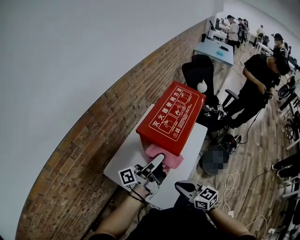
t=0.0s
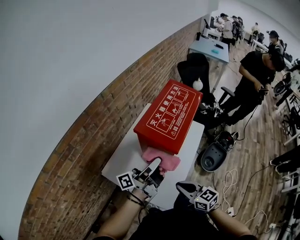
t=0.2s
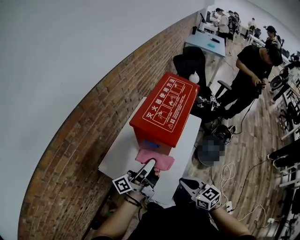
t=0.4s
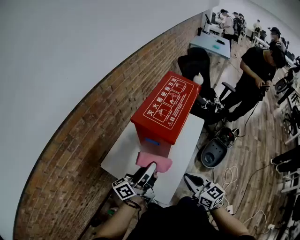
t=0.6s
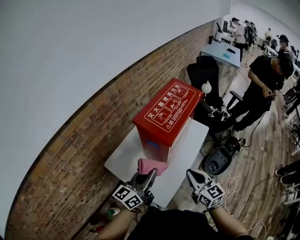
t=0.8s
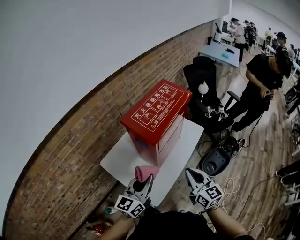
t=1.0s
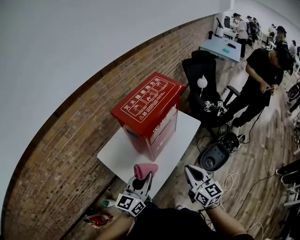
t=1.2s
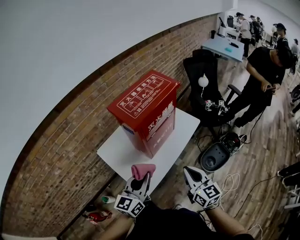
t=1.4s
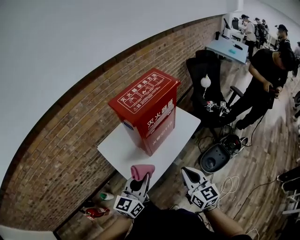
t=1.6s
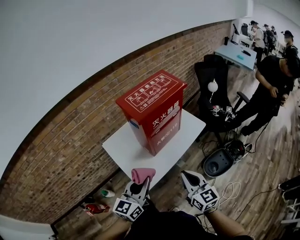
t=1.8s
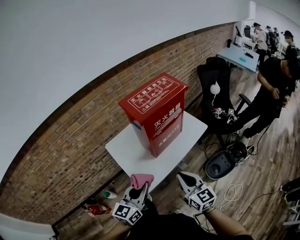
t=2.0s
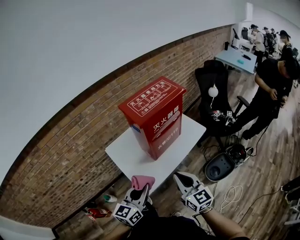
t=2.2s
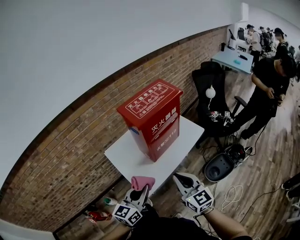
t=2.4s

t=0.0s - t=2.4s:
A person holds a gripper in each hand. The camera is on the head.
t=0.0s - t=1.2s: The right gripper shifts by approximately 20 cm.
t=1.2s - t=2.4s: The right gripper ends up some 10 cm from where it was.

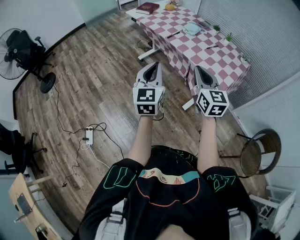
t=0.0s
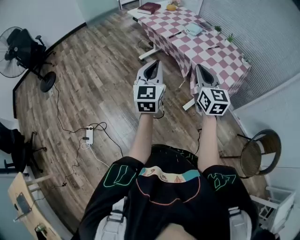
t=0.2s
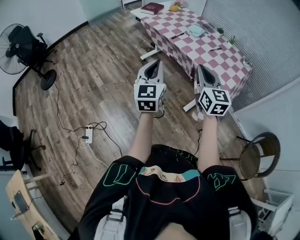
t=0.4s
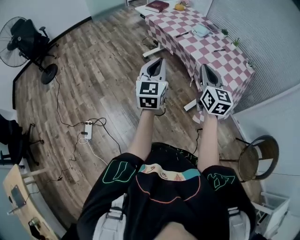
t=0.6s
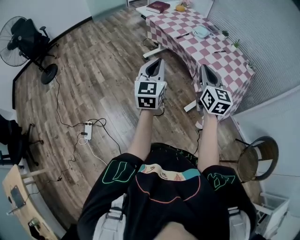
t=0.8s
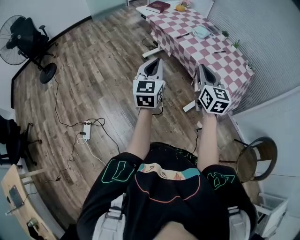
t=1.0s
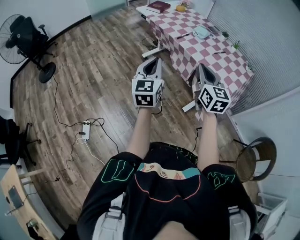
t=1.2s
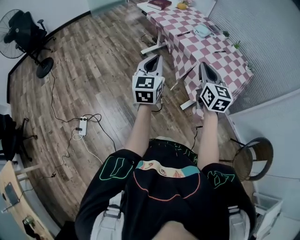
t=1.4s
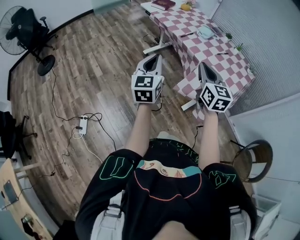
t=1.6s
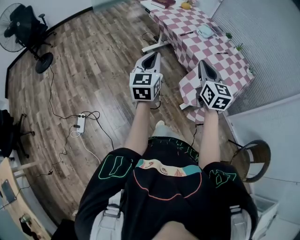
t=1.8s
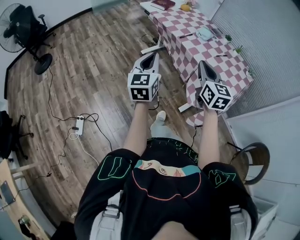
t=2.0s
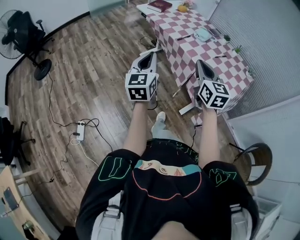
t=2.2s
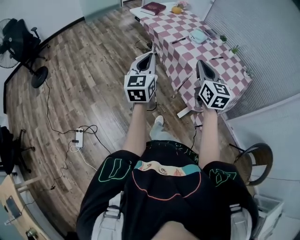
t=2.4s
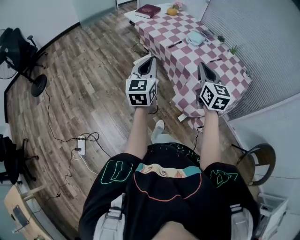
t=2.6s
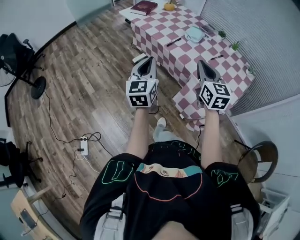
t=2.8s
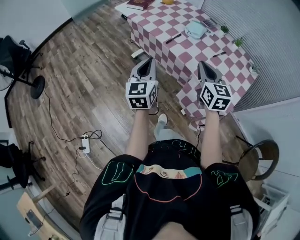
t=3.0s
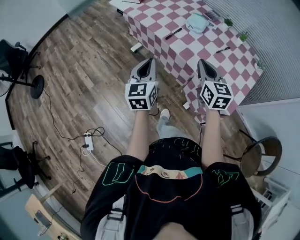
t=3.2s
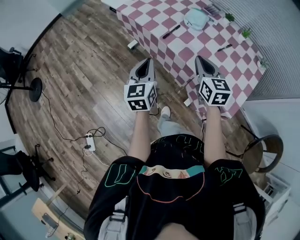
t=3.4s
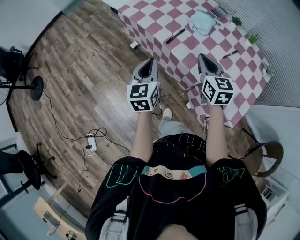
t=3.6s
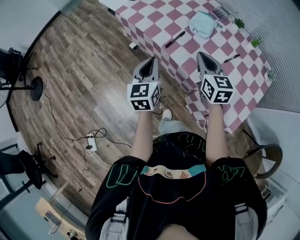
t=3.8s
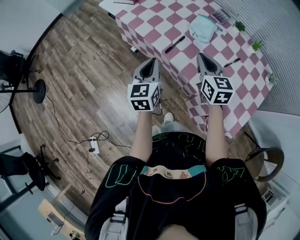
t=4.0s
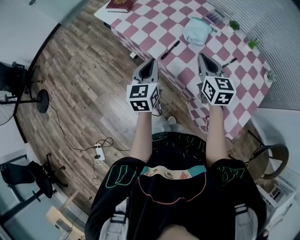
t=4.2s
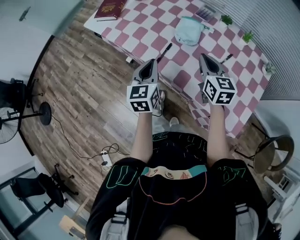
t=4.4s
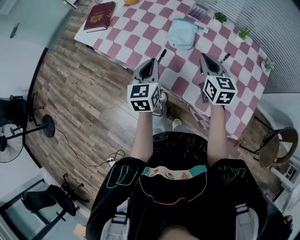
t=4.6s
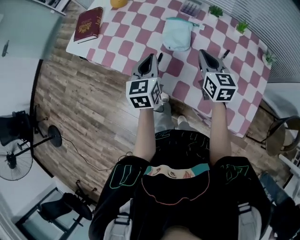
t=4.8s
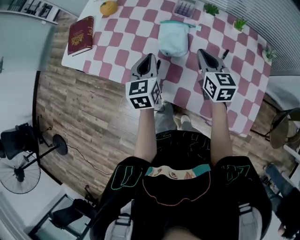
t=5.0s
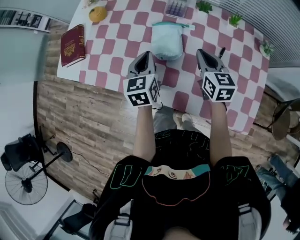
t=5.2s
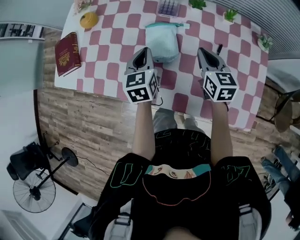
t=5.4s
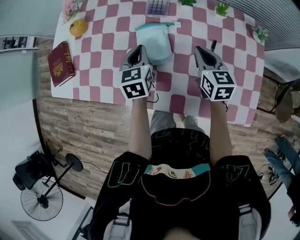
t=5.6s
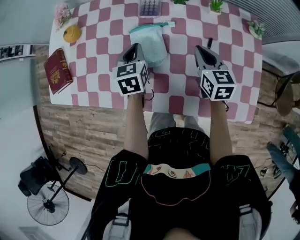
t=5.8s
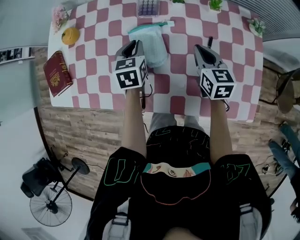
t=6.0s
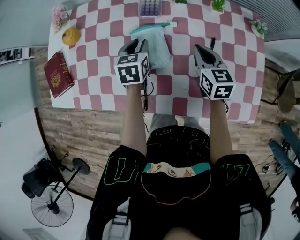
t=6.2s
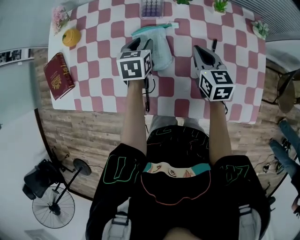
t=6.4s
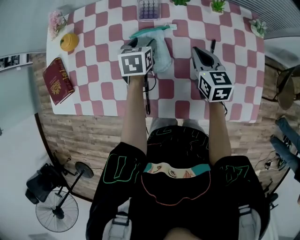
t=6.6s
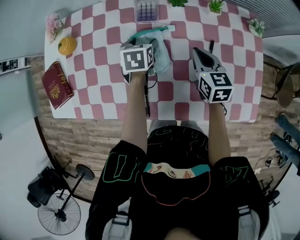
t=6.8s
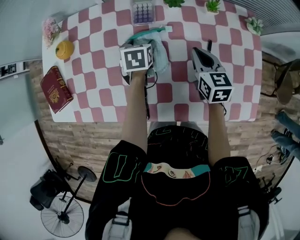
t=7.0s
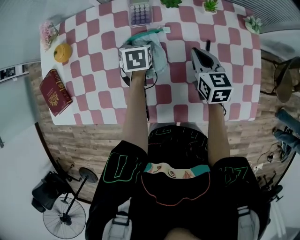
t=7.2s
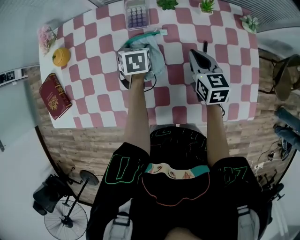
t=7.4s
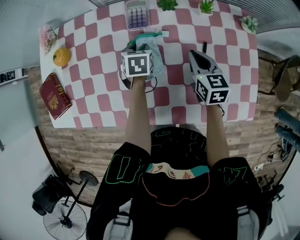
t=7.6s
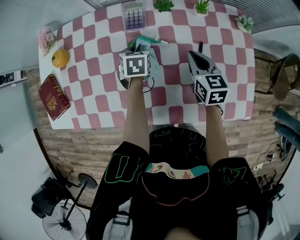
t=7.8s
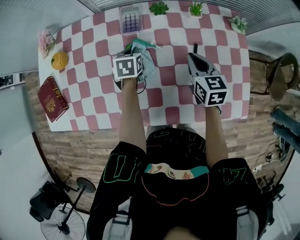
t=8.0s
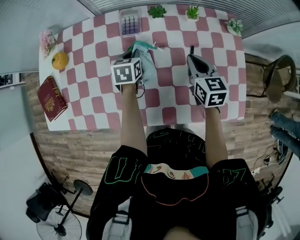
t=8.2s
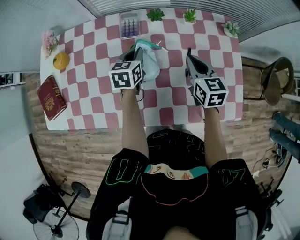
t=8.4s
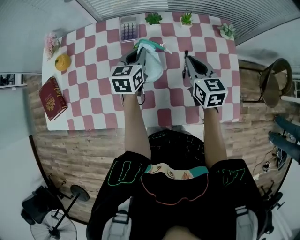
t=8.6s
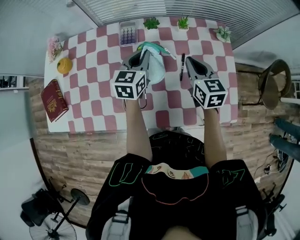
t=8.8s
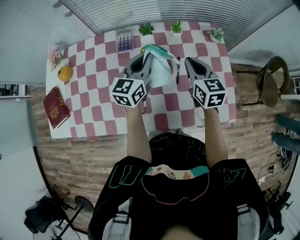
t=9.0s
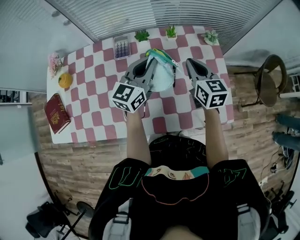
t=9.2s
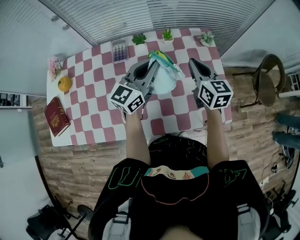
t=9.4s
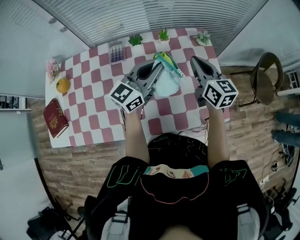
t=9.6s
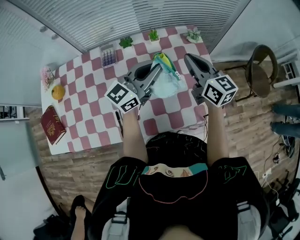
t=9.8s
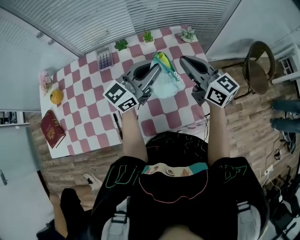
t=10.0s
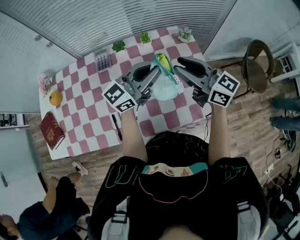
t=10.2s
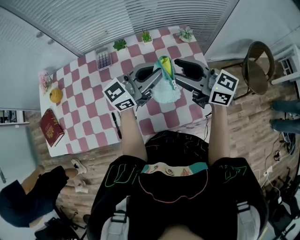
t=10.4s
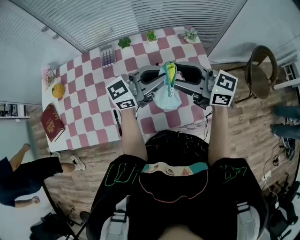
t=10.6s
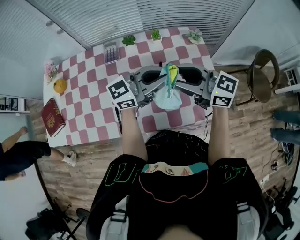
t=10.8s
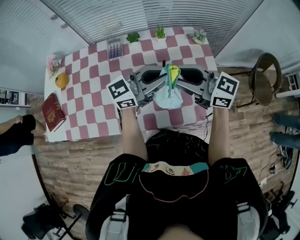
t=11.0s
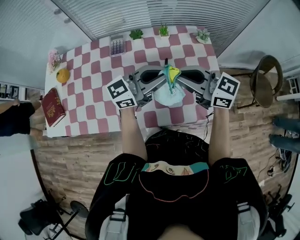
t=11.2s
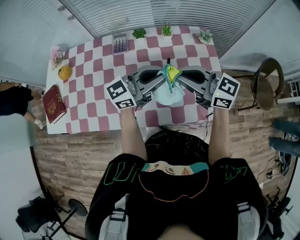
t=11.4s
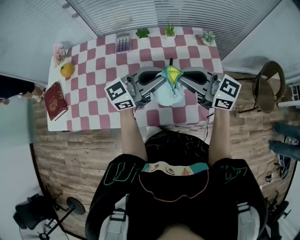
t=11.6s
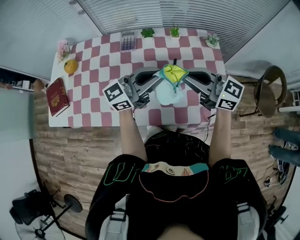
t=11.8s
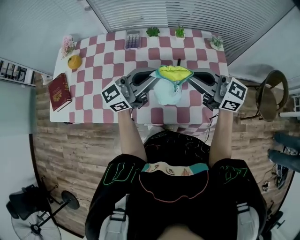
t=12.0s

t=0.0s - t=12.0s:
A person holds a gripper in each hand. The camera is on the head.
t=0.0s - t=1.6s: The grippers both shift to the left by approximately 5 cm.
t=1.6s - t=3.0s: The left gripper goes approximately 20 cm forward. The right gripper travels forward and to the right by about 20 cm.
t=3.0s - t=4.4s: Both grippers travel together forward, approximately 25 cm.
t=4.4s - t=6.0s: The left gripper ends up roughly 30 cm from where it was, and swivels some 40 degrees. Meanwhile the right gripper ends up roughly 20 cm from where it was, and swivels approximately 30 degrees.
t=6.0s - t=7.6s: The left gripper shifts roughly 10 cm downward and forward, and opens, then closes once more.
t=7.6s - t=9.0s: The right gripper travels upward and to the right by some 15 cm, while the left gripper goes approximately 25 cm upward and to the right, angles its fingers upward, by about 50 degrees, and closes.
t=9.0s - t=10.4s: The left gripper is displaced to the right and upward by approximately 20 cm, and rotates some 50 degrees, while the right gripper heads upward, backward and to the right, covering approximately 15 cm, turns by roughly 40 degrees, and opens its fingers.
t=10.4s - t=12.0s: The right gripper shifts by about 5 cm, and closes up; the left gripper shifts by roughly 15 cm.

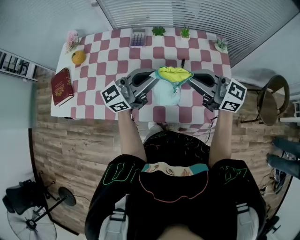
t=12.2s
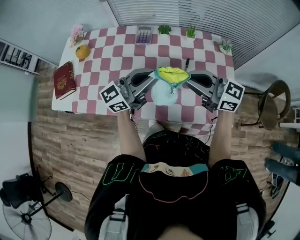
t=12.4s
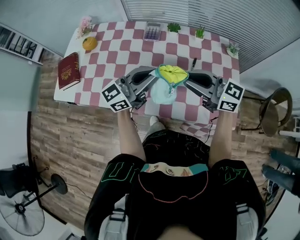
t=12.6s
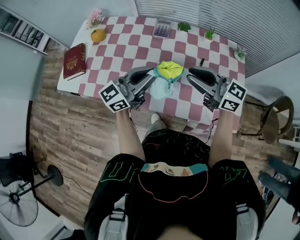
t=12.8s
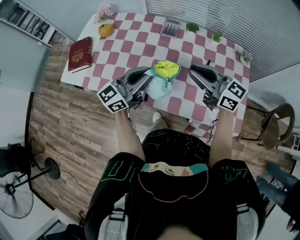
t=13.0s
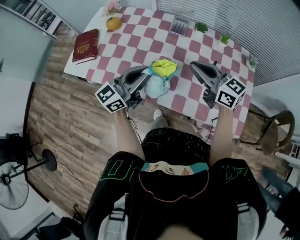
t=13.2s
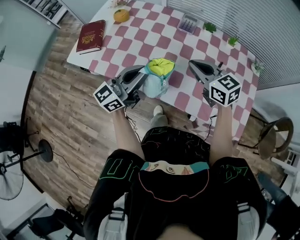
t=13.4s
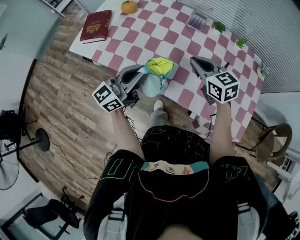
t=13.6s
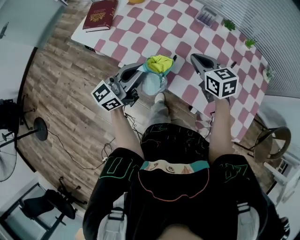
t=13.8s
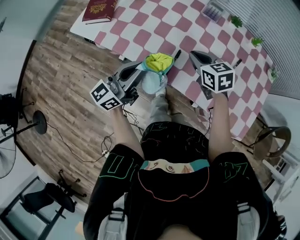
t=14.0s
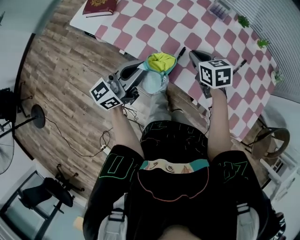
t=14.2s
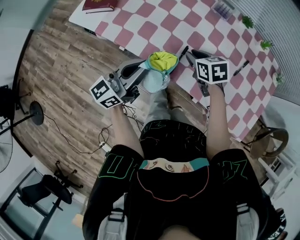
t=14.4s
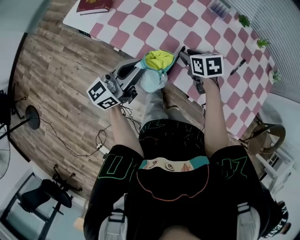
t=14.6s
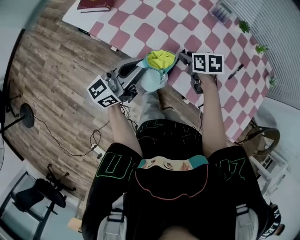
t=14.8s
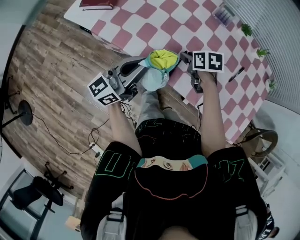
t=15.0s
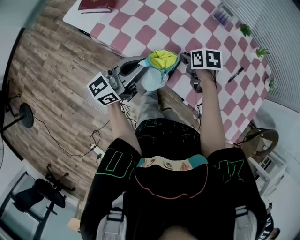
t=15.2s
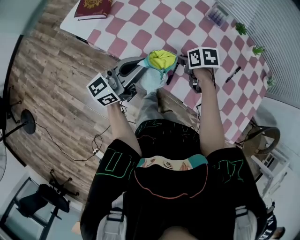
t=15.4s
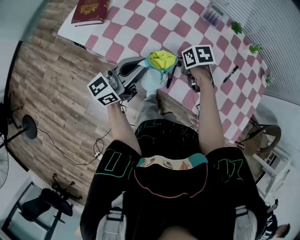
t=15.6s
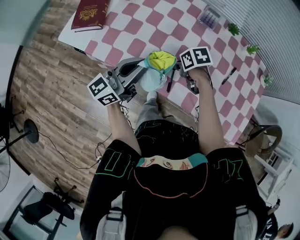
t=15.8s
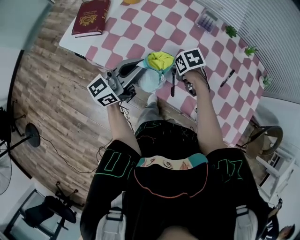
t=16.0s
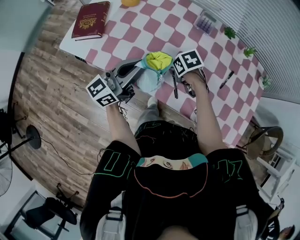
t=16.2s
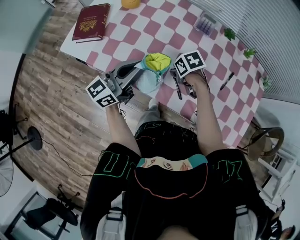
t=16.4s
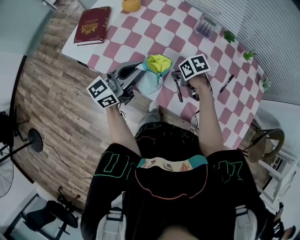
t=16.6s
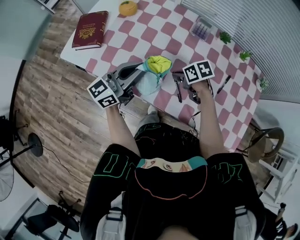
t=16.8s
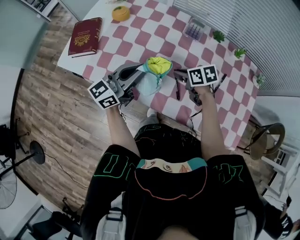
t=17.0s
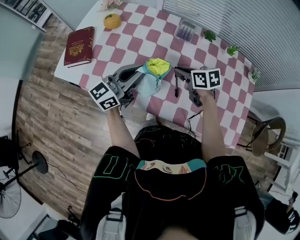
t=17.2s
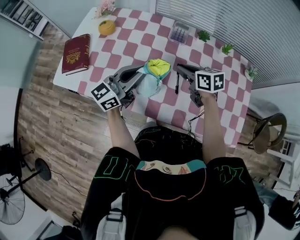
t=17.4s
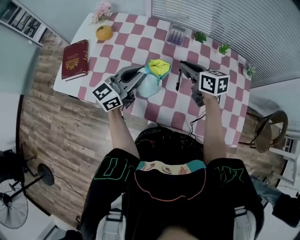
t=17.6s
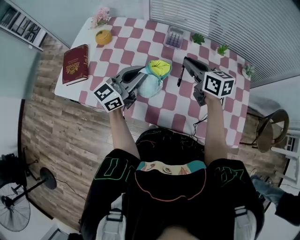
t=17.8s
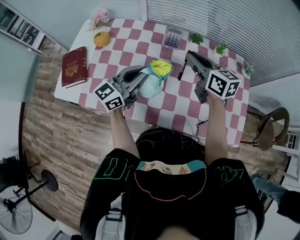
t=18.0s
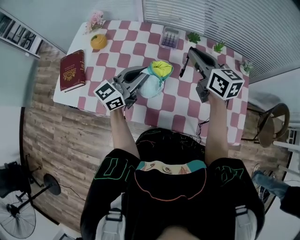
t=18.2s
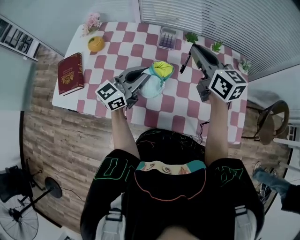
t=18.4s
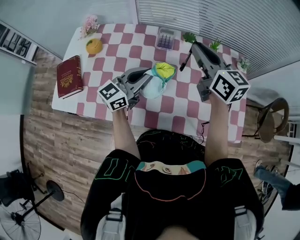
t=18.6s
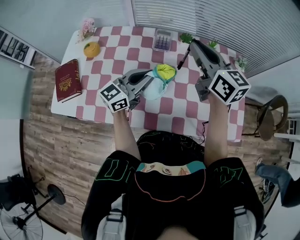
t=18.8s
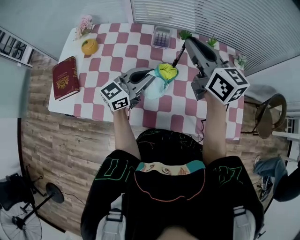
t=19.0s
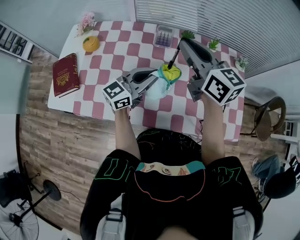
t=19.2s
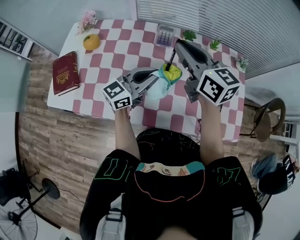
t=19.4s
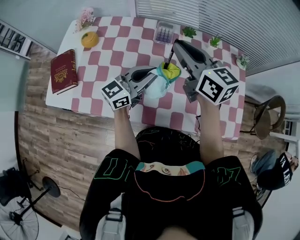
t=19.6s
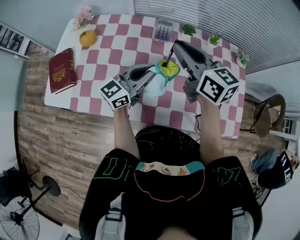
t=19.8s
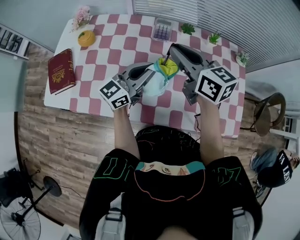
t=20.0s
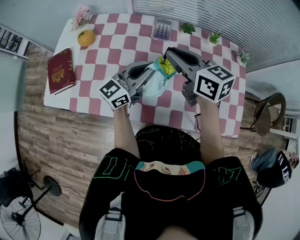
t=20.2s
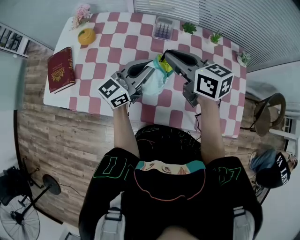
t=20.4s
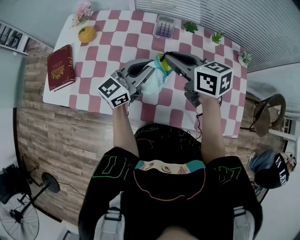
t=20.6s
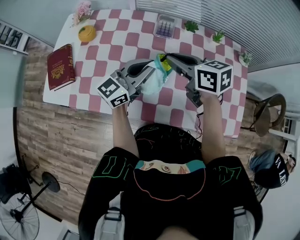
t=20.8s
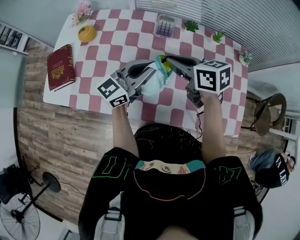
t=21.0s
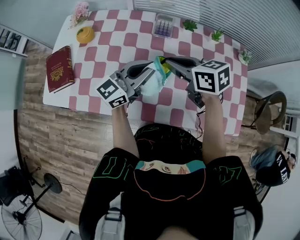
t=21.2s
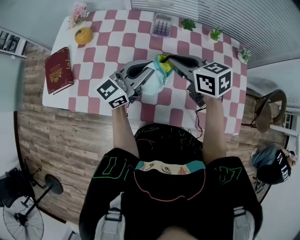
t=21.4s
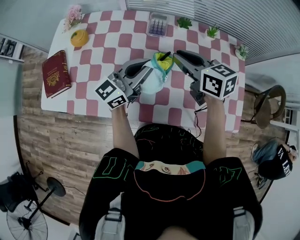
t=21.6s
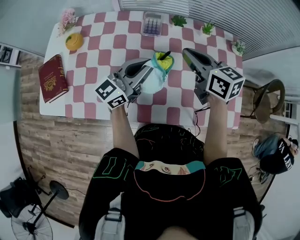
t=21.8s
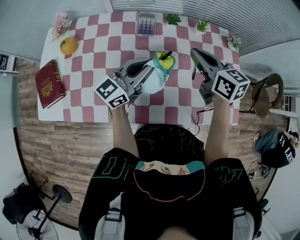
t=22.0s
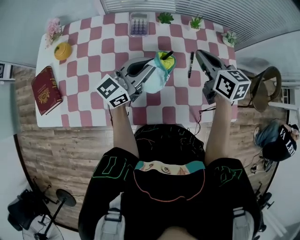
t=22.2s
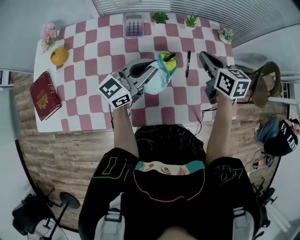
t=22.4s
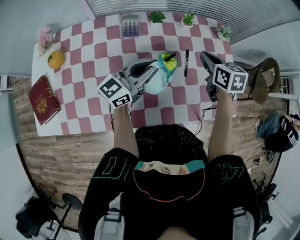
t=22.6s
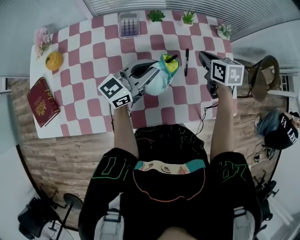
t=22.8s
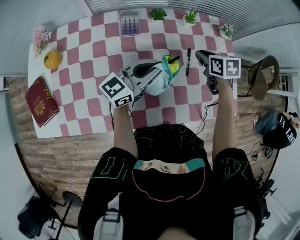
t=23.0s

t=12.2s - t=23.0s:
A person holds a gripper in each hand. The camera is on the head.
t=12.2s - t=13.8s: The right gripper shifts by approximately 25 cm, and tilts its fingers roughly 40 degrees downward; the left gripper ends up approximately 25 cm from where it was, and rotates some 40 degrees.
t=13.8s - t=15.2s: The right gripper moves downward, some 15 cm, points its fingers roughly 30 degrees further downward, and opens. Meanwhile the left gripper ends up some 5 cm from where it was.
t=15.2s - t=16.8s: The left gripper shifts by some 10 cm.
t=16.8s - t=18.4s: The left gripper shifts by about 15 cm. The right gripper moves upward, about 25 cm, and tips its fingers upward by some 50 degrees.
t=18.4s - t=20.0s: The right gripper heads to the left, covering roughly 5 cm.
t=20.0s - t=21.4s: The right gripper moves downward, approximately 10 cm, and changes its angle by approximately 20 degrees.
t=21.4s - t=23.0s: The left gripper shifts by some 10 cm. The right gripper moves some 25 cm, and swivels some 40 degrees.
